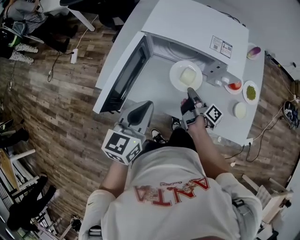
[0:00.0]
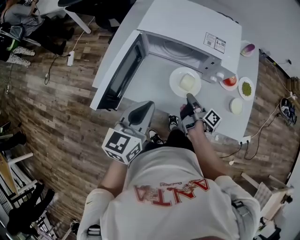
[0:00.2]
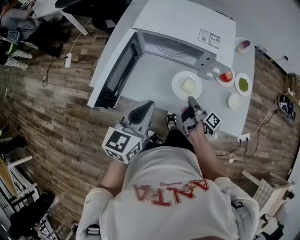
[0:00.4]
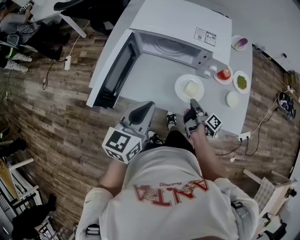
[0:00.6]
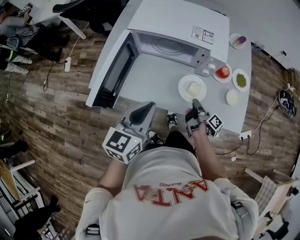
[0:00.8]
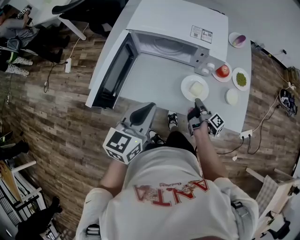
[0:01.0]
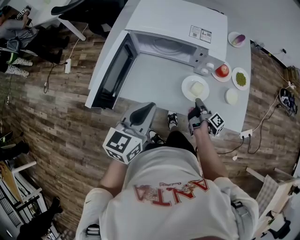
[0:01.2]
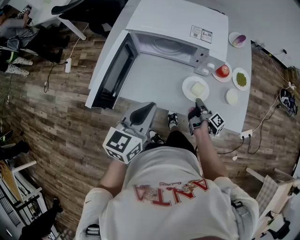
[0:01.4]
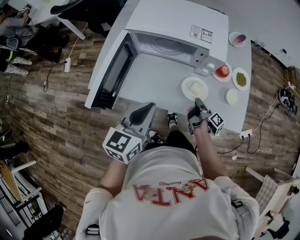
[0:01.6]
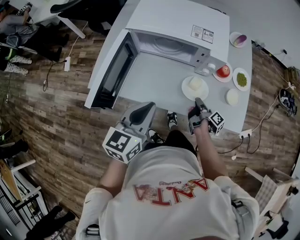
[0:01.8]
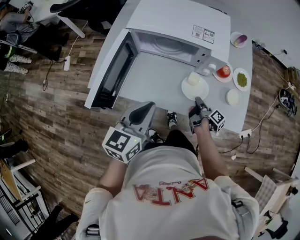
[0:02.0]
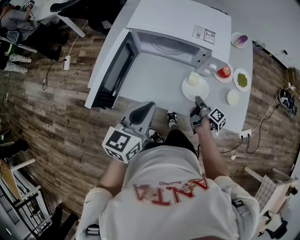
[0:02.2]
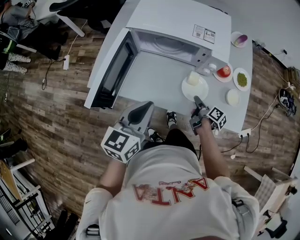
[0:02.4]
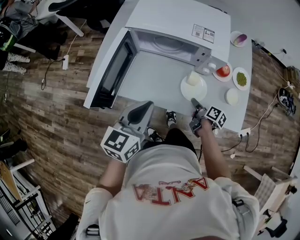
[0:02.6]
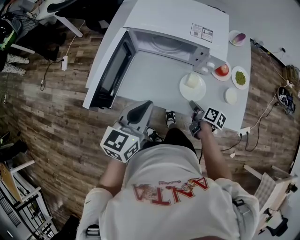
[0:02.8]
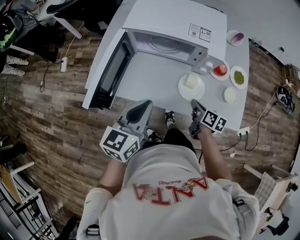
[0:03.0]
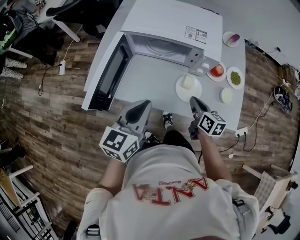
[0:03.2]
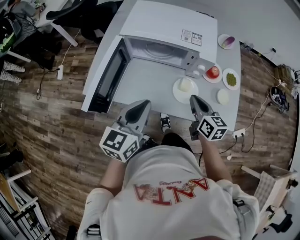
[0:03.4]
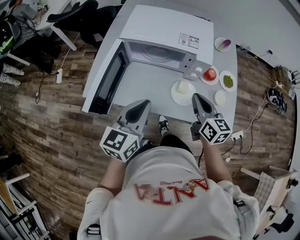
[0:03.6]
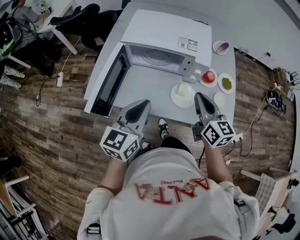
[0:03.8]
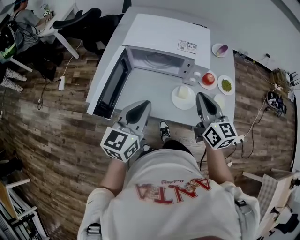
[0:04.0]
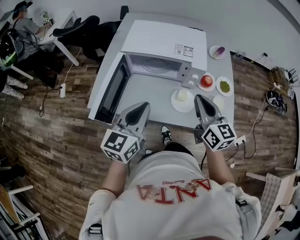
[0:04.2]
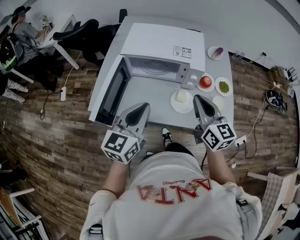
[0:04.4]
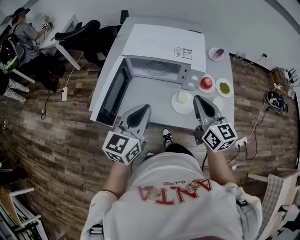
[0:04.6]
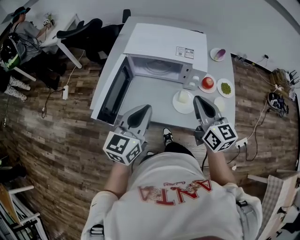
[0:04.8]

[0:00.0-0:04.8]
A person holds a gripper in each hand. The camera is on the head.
0:00.0 to 0:01.6: The right gripper goes approximately 15 cm to the right, downward and backward, while the left gripper heads to the right, covering approximately 5 cm.
0:01.6 to 0:03.2: The right gripper is displaced upward by roughly 10 cm, twists about 60 degrees counterclockwise, seen from behind, and opens, then closes once more.
0:03.2 to 0:04.8: The right gripper moves upward, some 20 cm, and swivels about 30 degrees. The left gripper heads upward, covering some 5 cm.

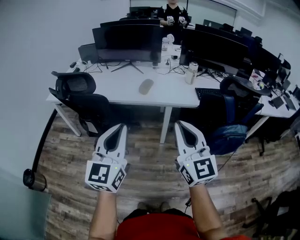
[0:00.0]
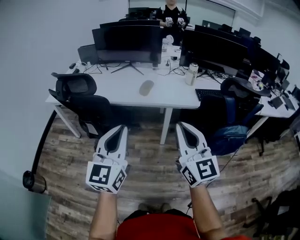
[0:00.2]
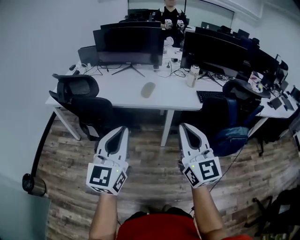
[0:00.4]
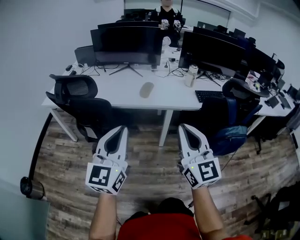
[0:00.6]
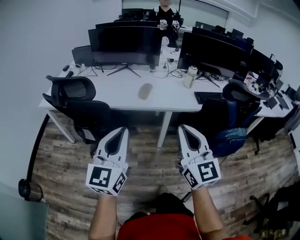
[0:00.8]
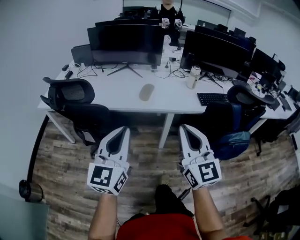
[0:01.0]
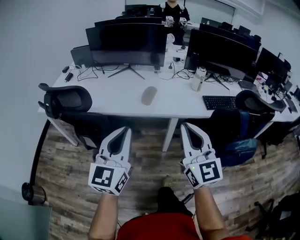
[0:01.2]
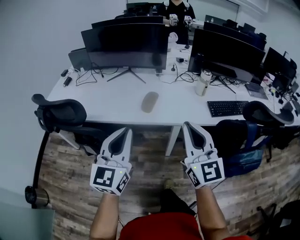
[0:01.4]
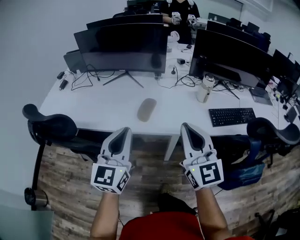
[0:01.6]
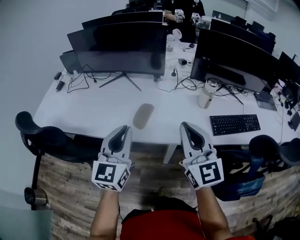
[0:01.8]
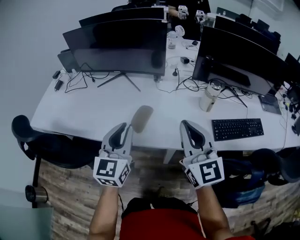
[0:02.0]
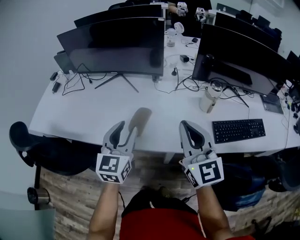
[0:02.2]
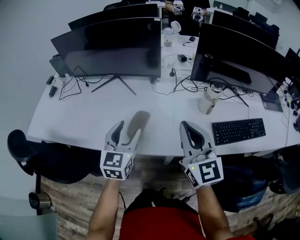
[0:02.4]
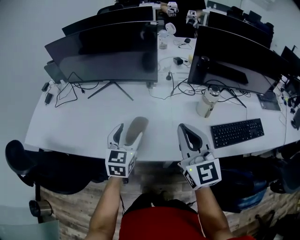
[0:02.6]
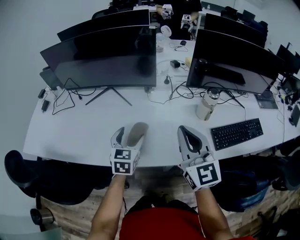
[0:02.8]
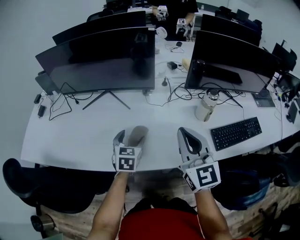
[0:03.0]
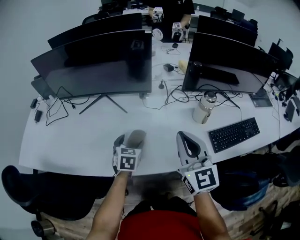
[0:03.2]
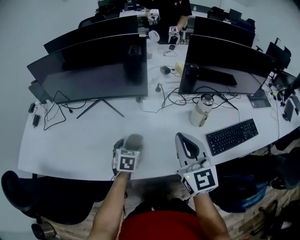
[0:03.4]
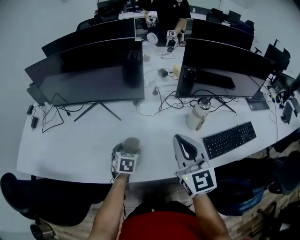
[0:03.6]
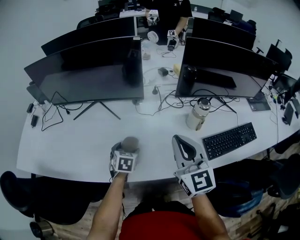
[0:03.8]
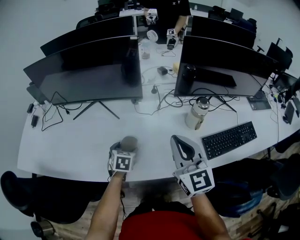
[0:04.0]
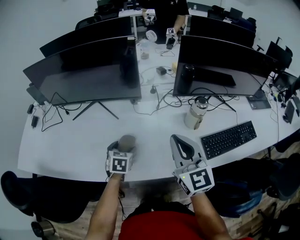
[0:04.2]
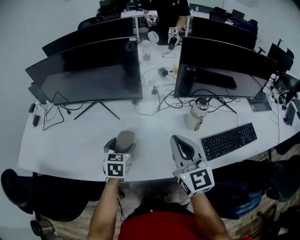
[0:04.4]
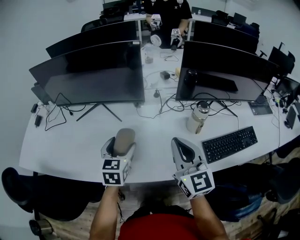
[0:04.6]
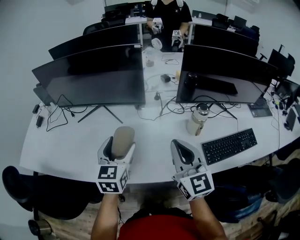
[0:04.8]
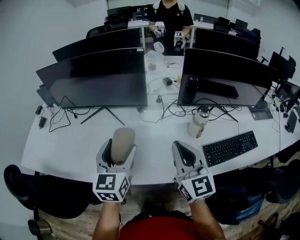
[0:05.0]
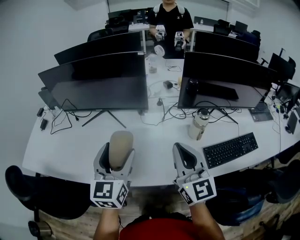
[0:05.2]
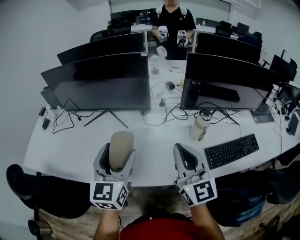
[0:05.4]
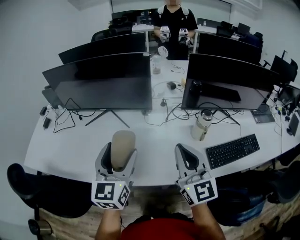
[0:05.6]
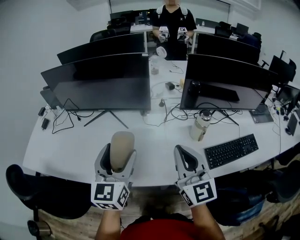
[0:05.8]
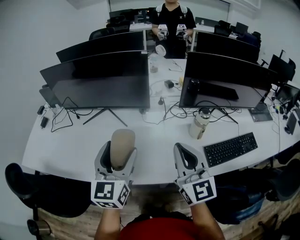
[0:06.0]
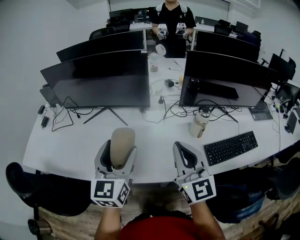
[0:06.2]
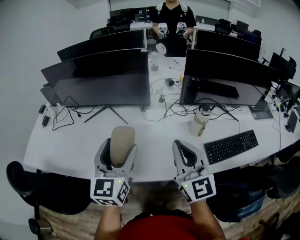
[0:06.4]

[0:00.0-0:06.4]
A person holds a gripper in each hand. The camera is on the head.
0:00.0 to 0:01.6: Both grippers travel together forward, about 30 cm.
0:01.6 to 0:03.2: The left gripper moves forward and downward, approximately 40 cm, angles its fingers downward, by roughly 40 degrees, and opens its fingers. The right gripper heads forward, covering approximately 20 cm.
0:03.2 to 0:04.8: The left gripper moves upward, some 15 cm, and swivels roughly 20 degrees.
0:04.8 to 0:06.4: The left gripper travels upward and backward by some 10 cm; the right gripper shifts by approximately 5 cm.

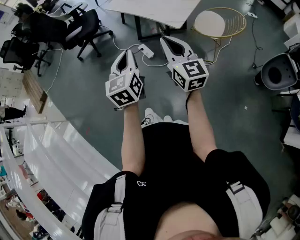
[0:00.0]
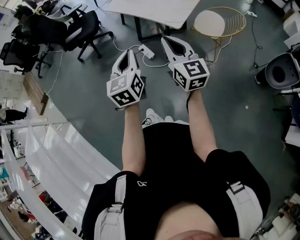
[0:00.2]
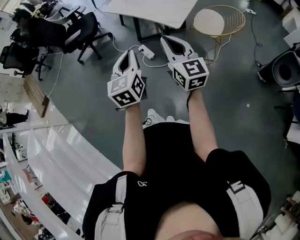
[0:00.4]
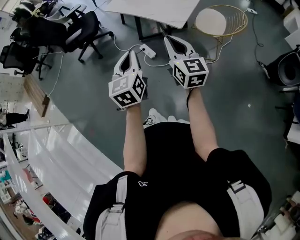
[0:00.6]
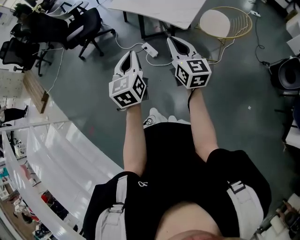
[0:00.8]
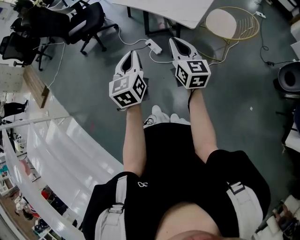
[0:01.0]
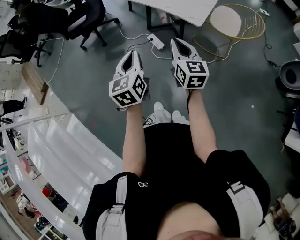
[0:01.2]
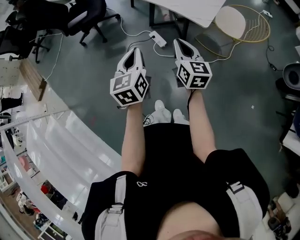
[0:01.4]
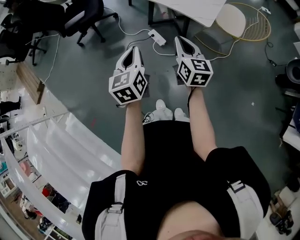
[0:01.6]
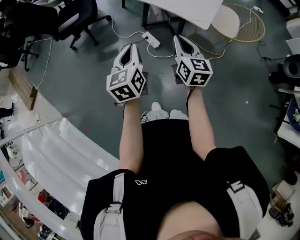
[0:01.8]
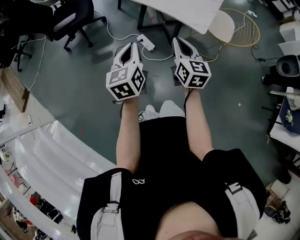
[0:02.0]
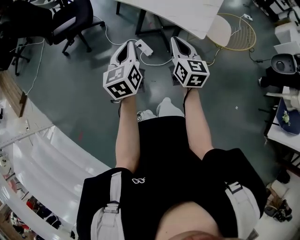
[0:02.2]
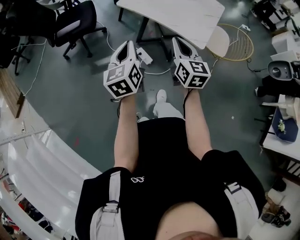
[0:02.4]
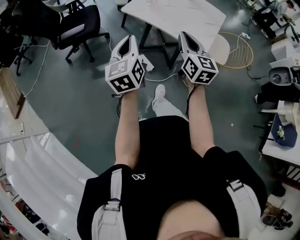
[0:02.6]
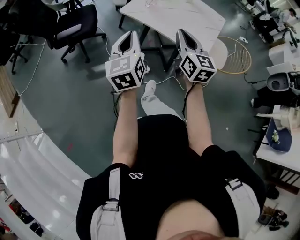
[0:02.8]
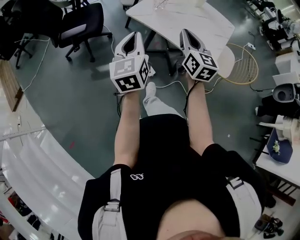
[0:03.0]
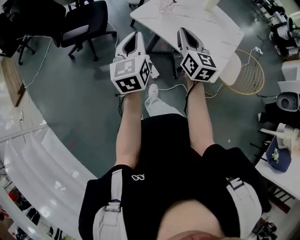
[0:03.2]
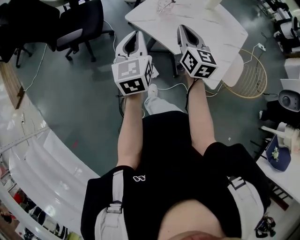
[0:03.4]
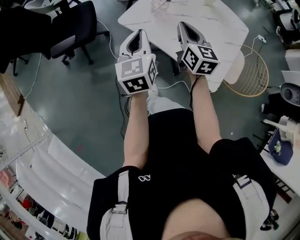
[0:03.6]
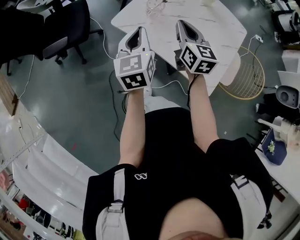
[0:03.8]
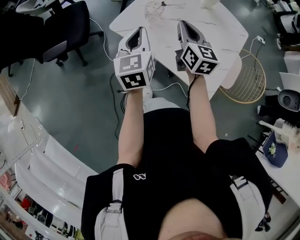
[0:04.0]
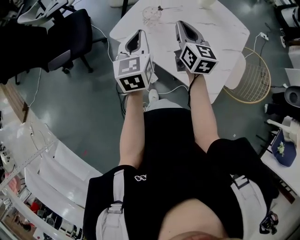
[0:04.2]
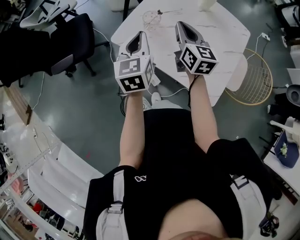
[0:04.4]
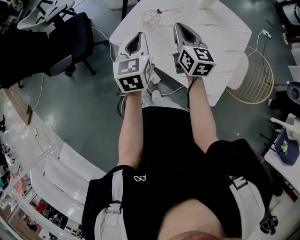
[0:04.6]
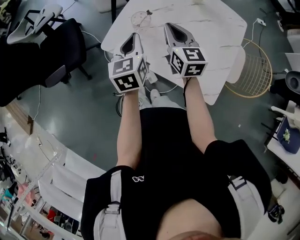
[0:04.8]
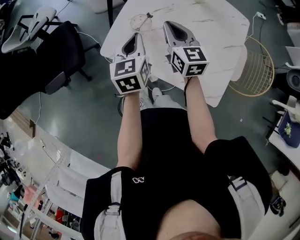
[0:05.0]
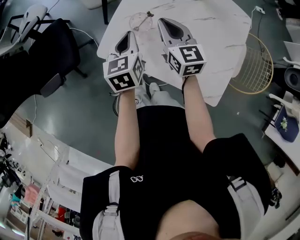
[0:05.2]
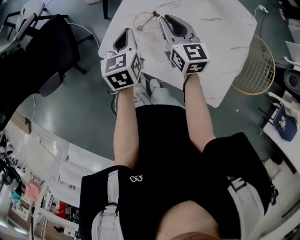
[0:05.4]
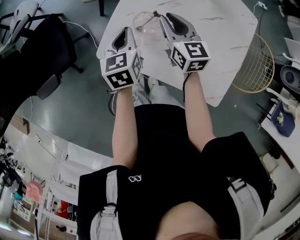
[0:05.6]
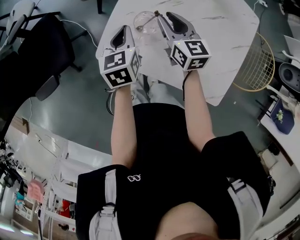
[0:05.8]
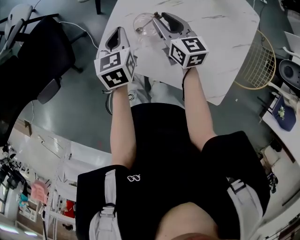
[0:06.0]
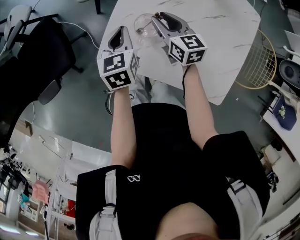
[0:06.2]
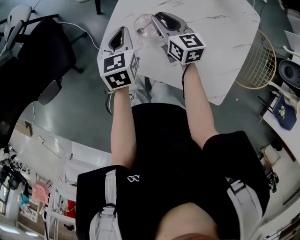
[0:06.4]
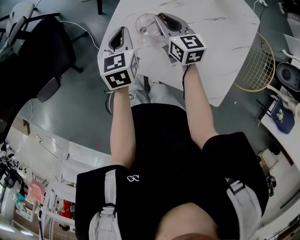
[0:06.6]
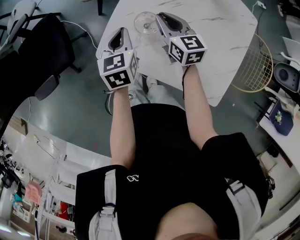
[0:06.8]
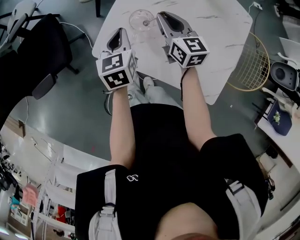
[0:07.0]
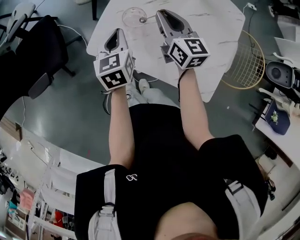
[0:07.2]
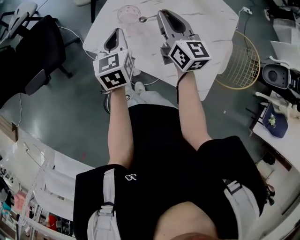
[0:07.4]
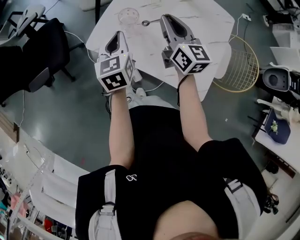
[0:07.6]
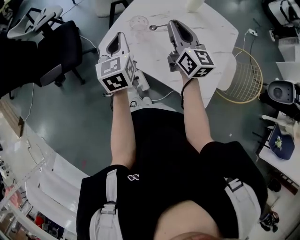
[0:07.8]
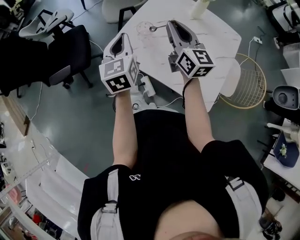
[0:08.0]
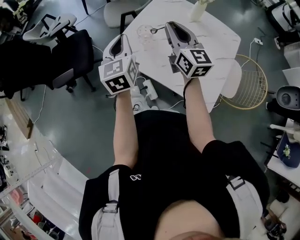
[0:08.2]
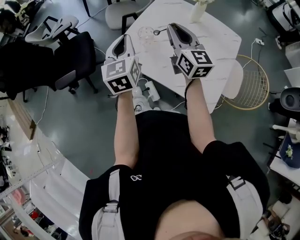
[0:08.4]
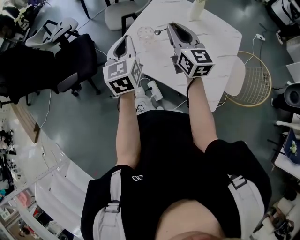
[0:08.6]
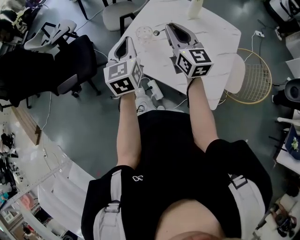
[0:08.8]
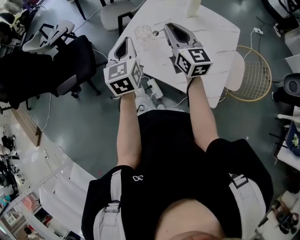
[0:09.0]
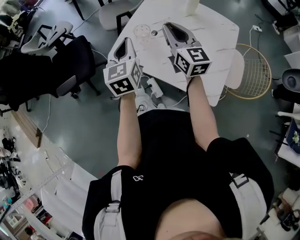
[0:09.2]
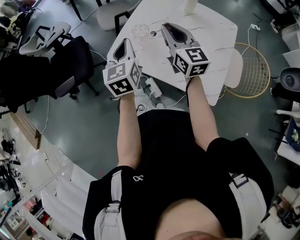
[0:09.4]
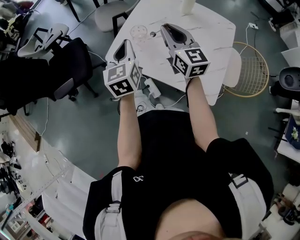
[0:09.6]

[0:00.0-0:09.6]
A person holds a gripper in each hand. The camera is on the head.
0:00.0 to 0:01.6: The right gripper is displaced downward, forward and to the left by some 20 cm, and turns by about 20 degrees. The left gripper is displaced to the left, downward and forward by roughly 15 cm.
0:01.6 to 0:03.2: Both grippers travel together forward, about 25 cm.
0:03.2 to 0:04.8: The right gripper travels forward by some 25 cm; the left gripper moves forward and to the right, some 30 cm, and swivels approximately 20 degrees.
0:04.8 to 0:06.4: The right gripper travels downward and forward by about 20 cm, and opens up. The left gripper travels forward and downward by about 20 cm.
0:06.4 to 0:08.0: Both grippers travel together upward and backward, about 30 cm. The right gripper angles its fingers upward, by some 30 degrees, while the left gripper turns by roughly 30 degrees.
0:08.0 to 0:09.6: The grippers make only small movements.

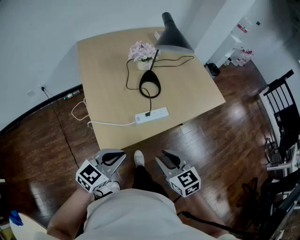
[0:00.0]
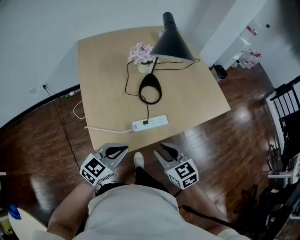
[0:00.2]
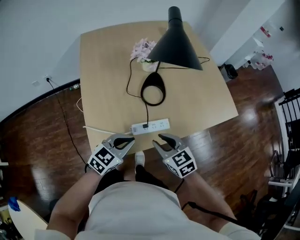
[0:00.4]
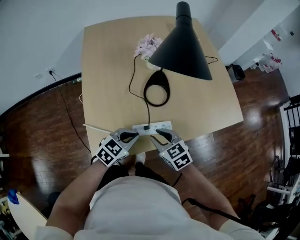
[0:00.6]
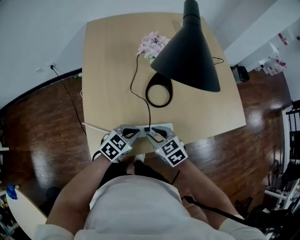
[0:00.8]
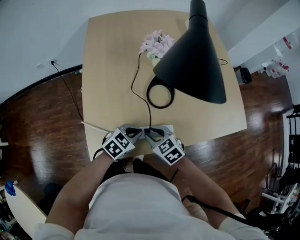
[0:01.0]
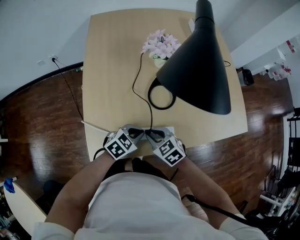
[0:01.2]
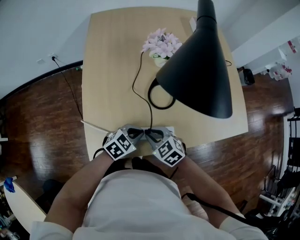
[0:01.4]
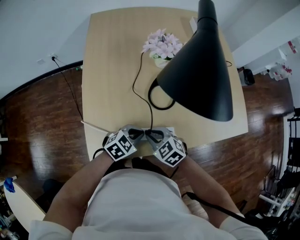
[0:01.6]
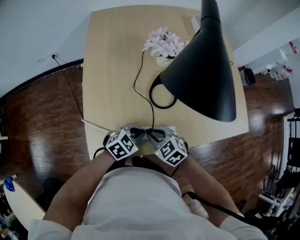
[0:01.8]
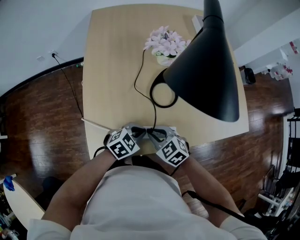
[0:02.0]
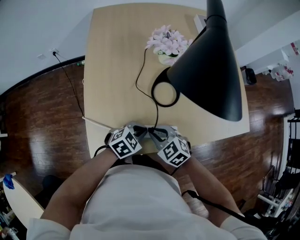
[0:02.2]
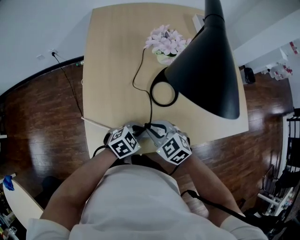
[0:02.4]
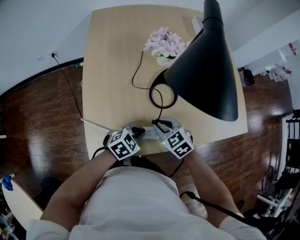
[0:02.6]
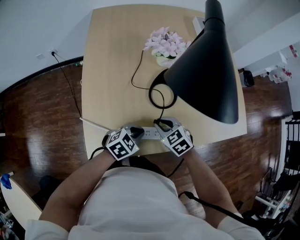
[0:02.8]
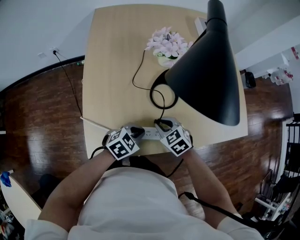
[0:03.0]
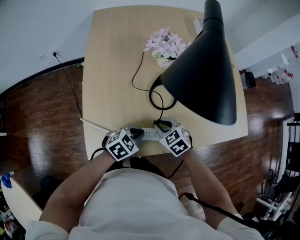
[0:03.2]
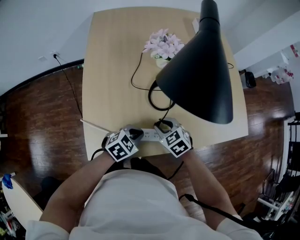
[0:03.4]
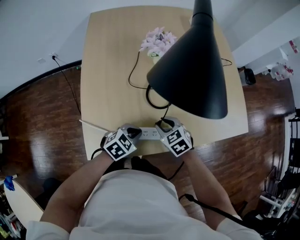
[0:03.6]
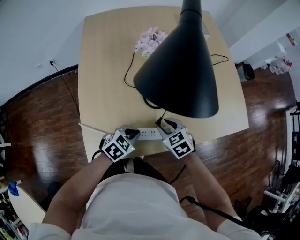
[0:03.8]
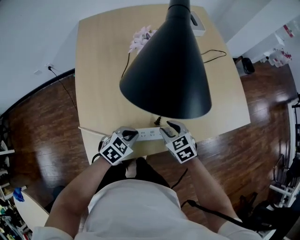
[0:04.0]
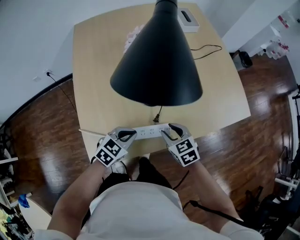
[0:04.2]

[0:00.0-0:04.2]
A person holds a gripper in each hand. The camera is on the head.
0:00.0 to 0:01.4: The left gripper goes about 30 cm forward, downward and to the right, and turns by about 20 degrees. The right gripper is displaced forward and downward by about 25 cm, and changes its angle by about 40 degrees.
0:01.4 to 0:02.8: The right gripper is displaced forward by about 5 cm.
0:02.8 to 0:04.2: The right gripper heads to the right, covering about 5 cm, turns by approximately 20 degrees, and opens its fingers.
